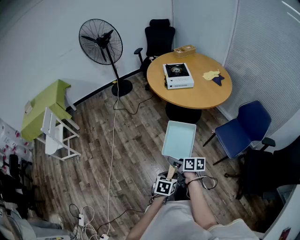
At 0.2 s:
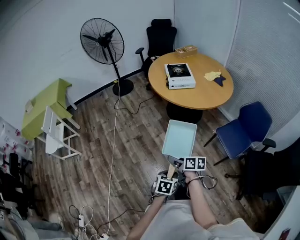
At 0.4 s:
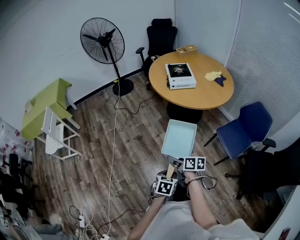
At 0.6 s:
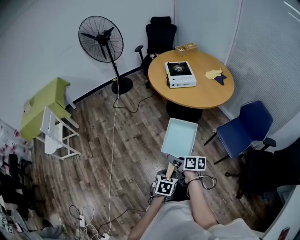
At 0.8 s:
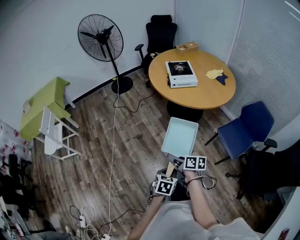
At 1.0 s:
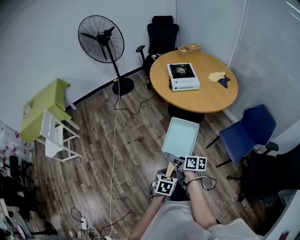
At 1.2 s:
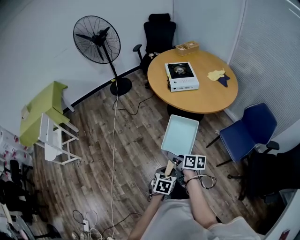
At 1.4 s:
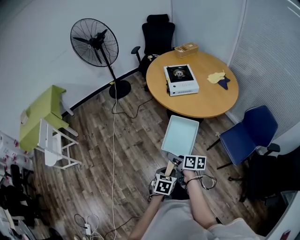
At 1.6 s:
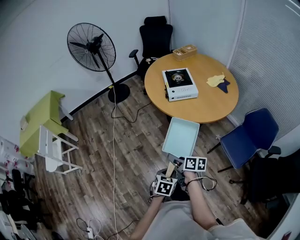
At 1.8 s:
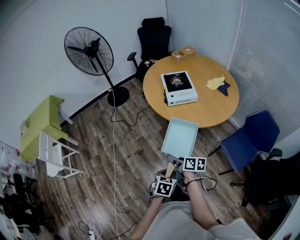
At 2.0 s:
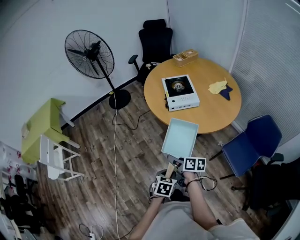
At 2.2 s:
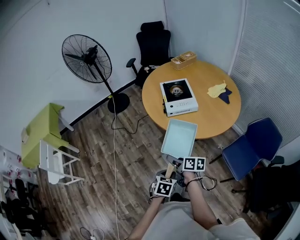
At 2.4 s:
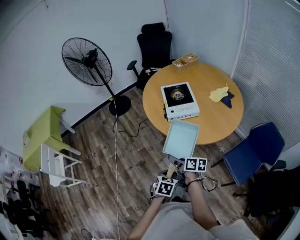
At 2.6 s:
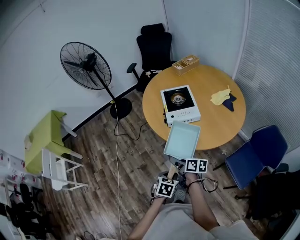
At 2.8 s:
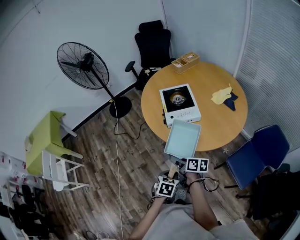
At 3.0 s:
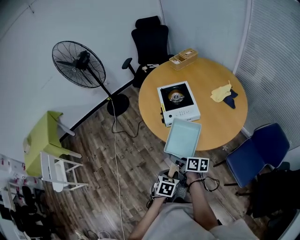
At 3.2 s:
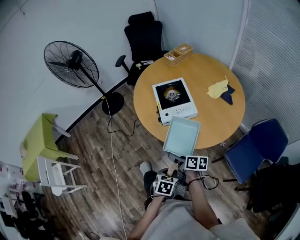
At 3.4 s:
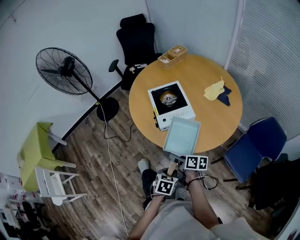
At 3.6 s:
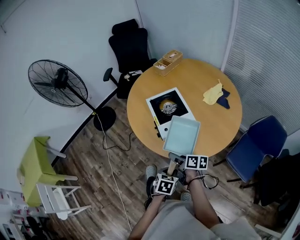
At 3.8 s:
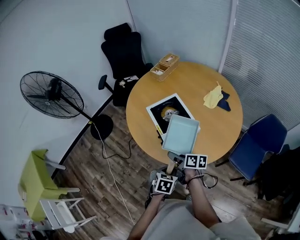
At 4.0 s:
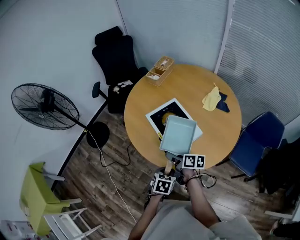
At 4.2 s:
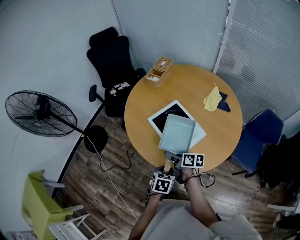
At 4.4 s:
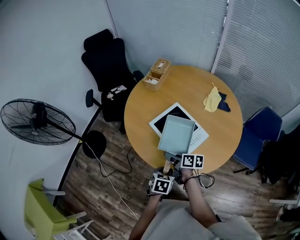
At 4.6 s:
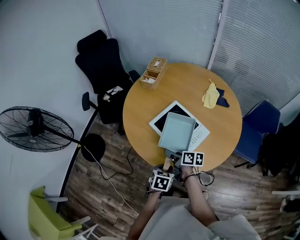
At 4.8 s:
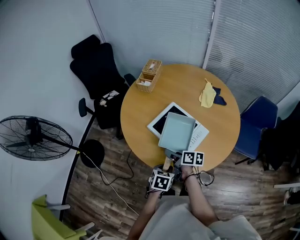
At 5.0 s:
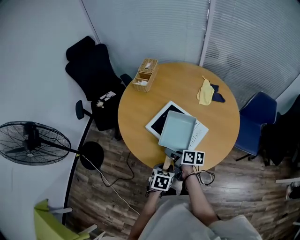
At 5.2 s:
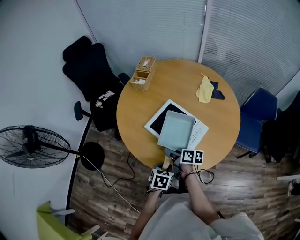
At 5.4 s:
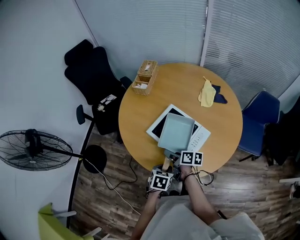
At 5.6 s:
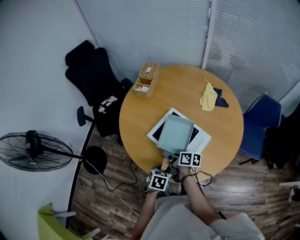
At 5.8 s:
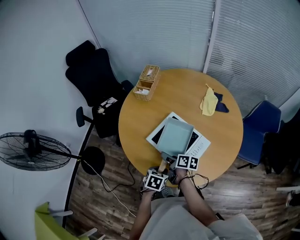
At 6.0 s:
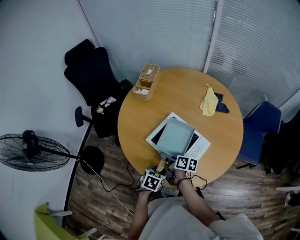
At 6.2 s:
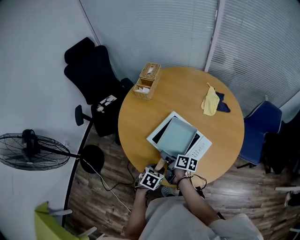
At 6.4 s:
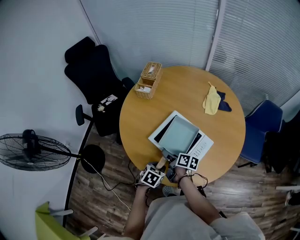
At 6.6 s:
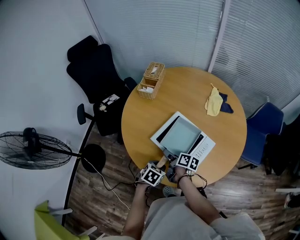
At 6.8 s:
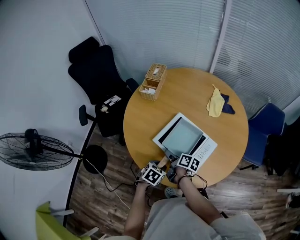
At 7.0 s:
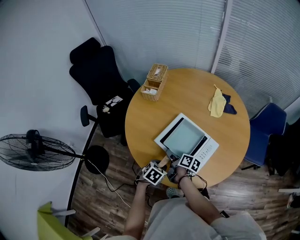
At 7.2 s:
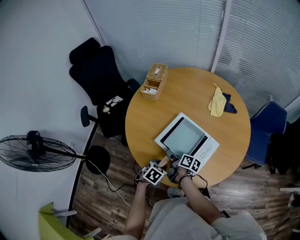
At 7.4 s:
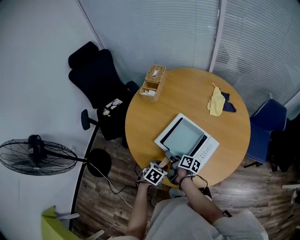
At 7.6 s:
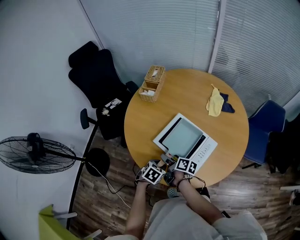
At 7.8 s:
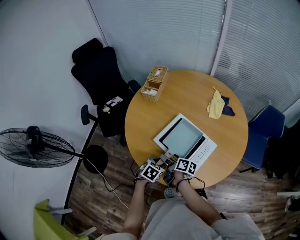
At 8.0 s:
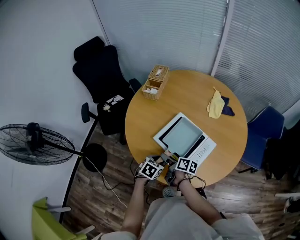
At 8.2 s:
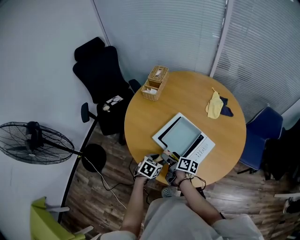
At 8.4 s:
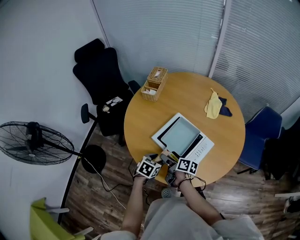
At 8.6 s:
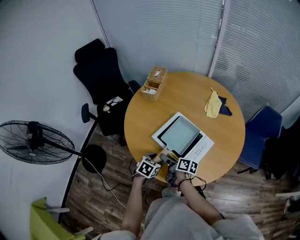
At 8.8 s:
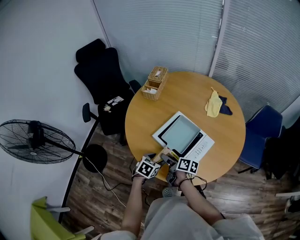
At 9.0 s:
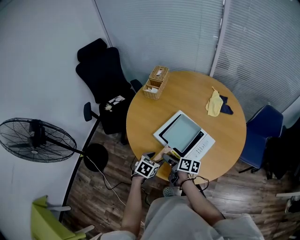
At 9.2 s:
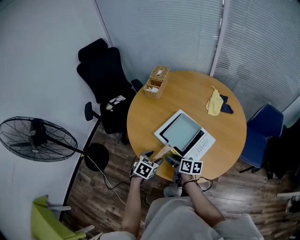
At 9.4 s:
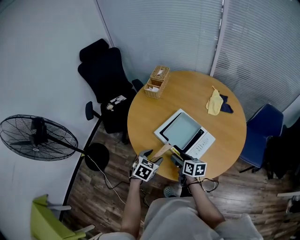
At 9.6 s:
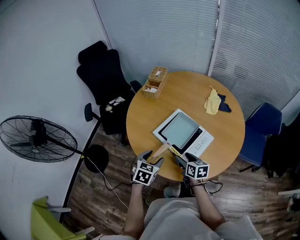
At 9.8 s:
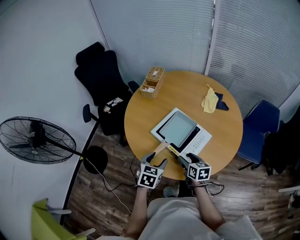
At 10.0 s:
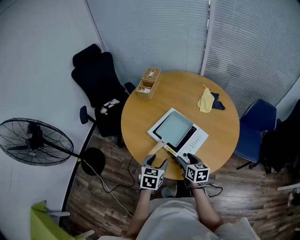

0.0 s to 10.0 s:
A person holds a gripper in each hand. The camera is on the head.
0.0 to 1.4 s: The grippers both shift forward by some 15 cm.
1.4 to 2.8 s: Both grippers travel together forward, about 25 cm.
2.8 to 4.2 s: The left gripper ends up about 30 cm from where it was, and turns by roughly 20 degrees. The right gripper moves approximately 30 cm, and rotates roughly 20 degrees.
4.2 to 5.8 s: The right gripper travels forward by about 10 cm. Meanwhile the left gripper is displaced forward and to the left by roughly 15 cm.
5.8 to 7.2 s: The left gripper changes place by roughly 5 cm.
7.2 to 8.6 s: The left gripper opens; the right gripper shifts roughly 5 cm backward.
8.6 to 10.0 s: The right gripper shifts approximately 15 cm to the right and backward, and changes its angle by approximately 40 degrees, while the left gripper travels upward and backward by some 10 cm, and turns by roughly 20 degrees.

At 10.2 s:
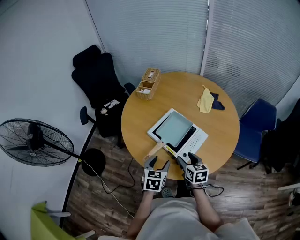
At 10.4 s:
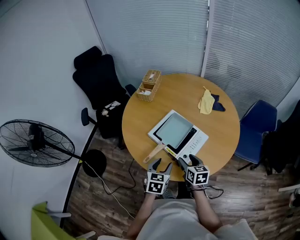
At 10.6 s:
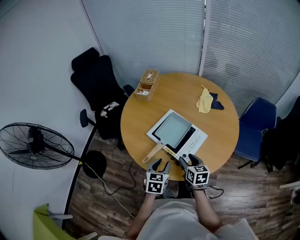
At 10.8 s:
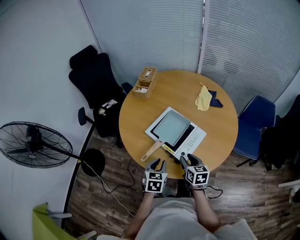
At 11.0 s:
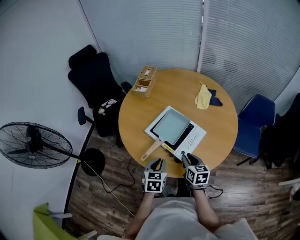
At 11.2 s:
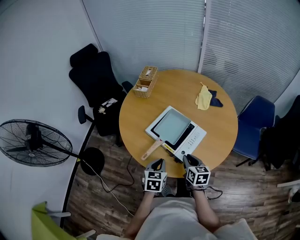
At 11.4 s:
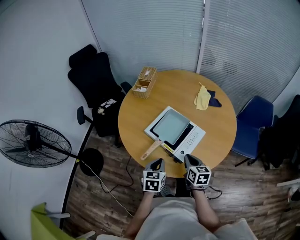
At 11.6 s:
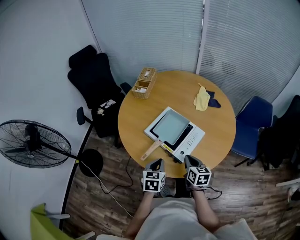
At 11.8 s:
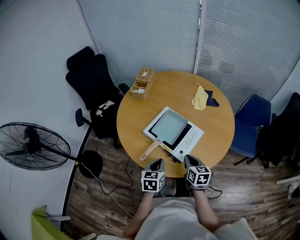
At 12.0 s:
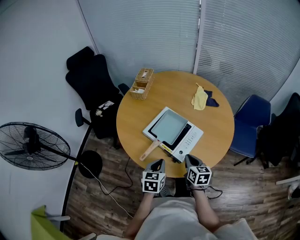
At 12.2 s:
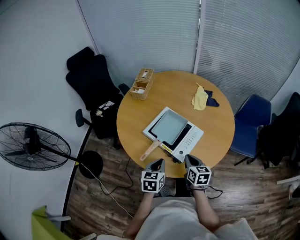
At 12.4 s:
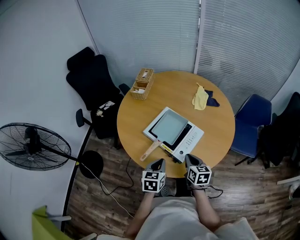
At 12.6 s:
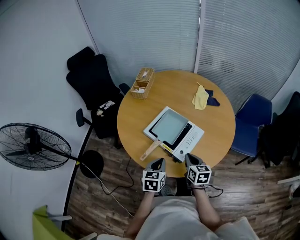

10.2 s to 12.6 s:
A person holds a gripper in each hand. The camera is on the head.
10.2 to 11.4 s: The right gripper closes up. Meanwhile the left gripper closes its fingers.
11.4 to 12.6 s: Both grippers stay about where they are.

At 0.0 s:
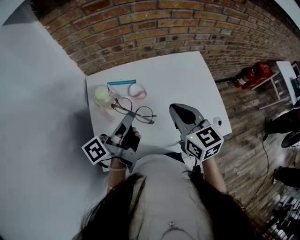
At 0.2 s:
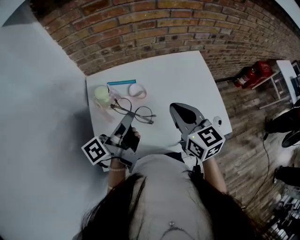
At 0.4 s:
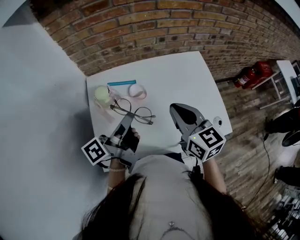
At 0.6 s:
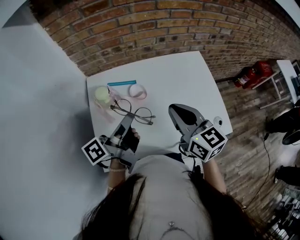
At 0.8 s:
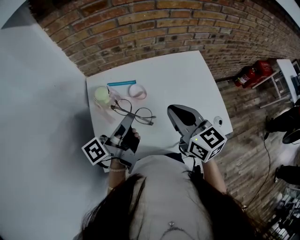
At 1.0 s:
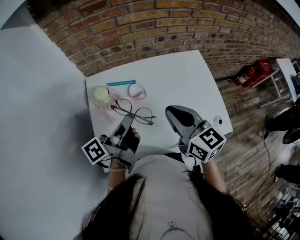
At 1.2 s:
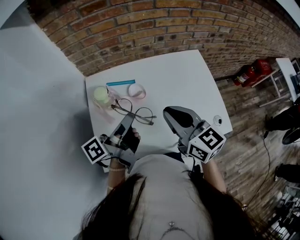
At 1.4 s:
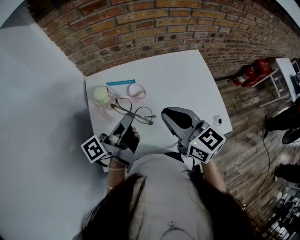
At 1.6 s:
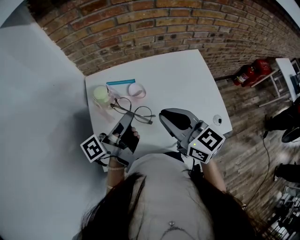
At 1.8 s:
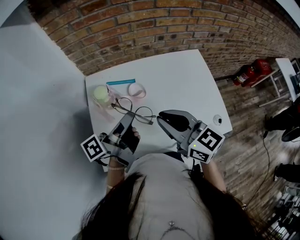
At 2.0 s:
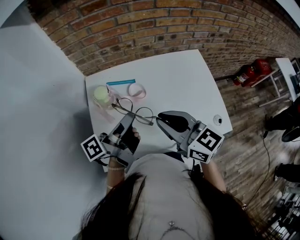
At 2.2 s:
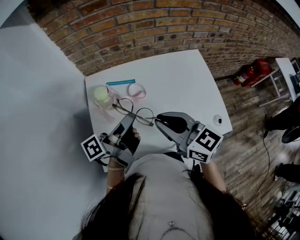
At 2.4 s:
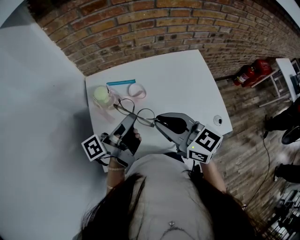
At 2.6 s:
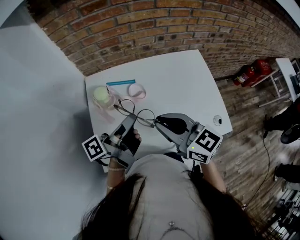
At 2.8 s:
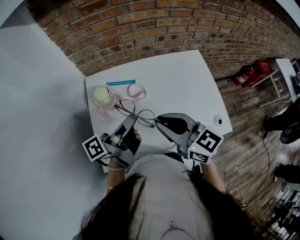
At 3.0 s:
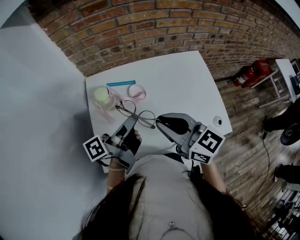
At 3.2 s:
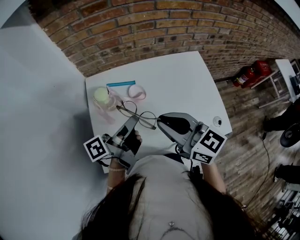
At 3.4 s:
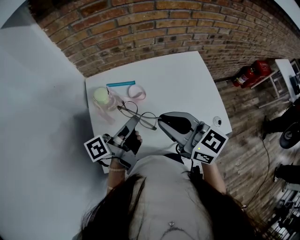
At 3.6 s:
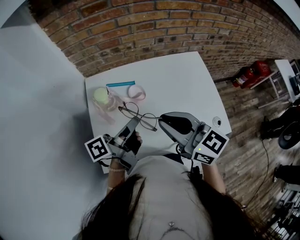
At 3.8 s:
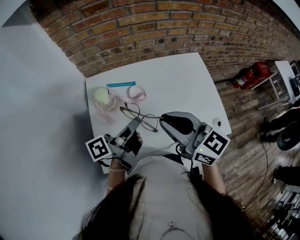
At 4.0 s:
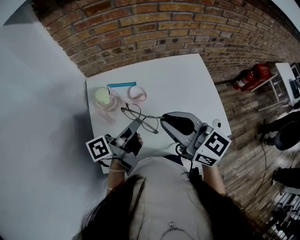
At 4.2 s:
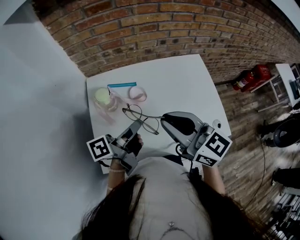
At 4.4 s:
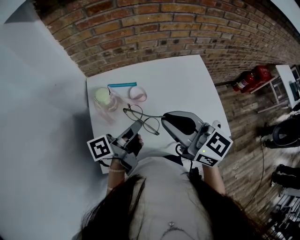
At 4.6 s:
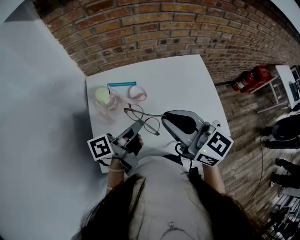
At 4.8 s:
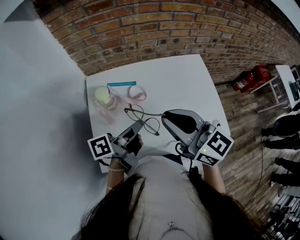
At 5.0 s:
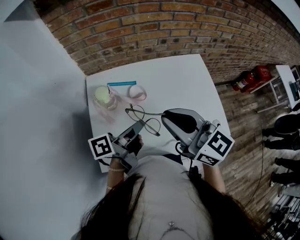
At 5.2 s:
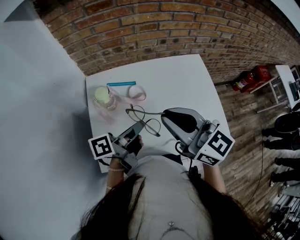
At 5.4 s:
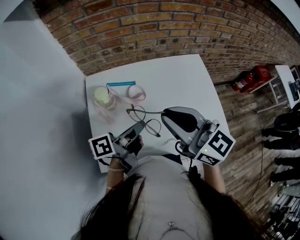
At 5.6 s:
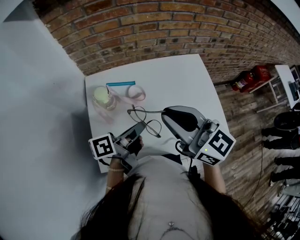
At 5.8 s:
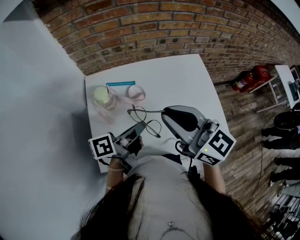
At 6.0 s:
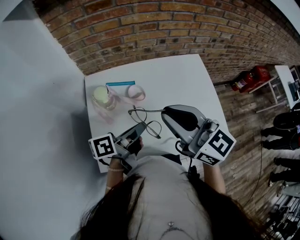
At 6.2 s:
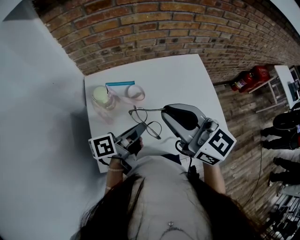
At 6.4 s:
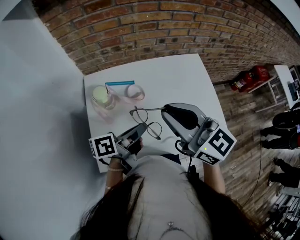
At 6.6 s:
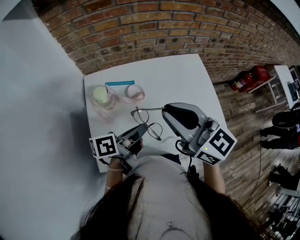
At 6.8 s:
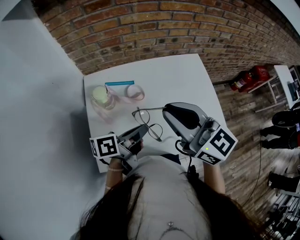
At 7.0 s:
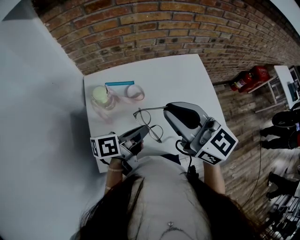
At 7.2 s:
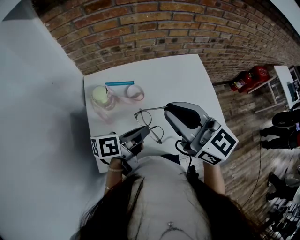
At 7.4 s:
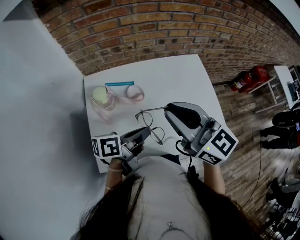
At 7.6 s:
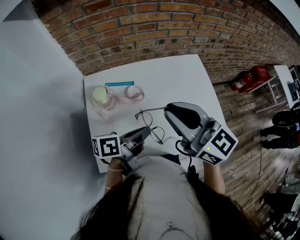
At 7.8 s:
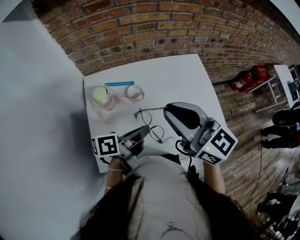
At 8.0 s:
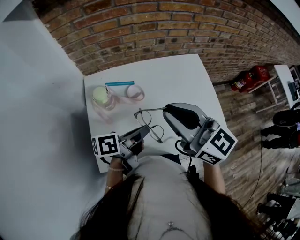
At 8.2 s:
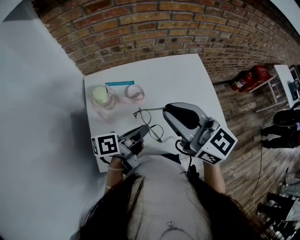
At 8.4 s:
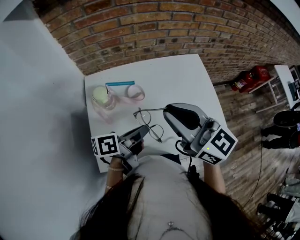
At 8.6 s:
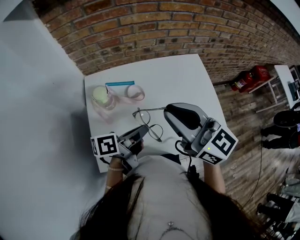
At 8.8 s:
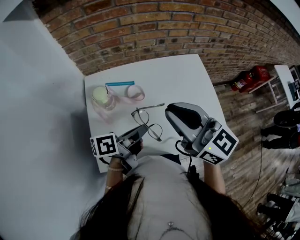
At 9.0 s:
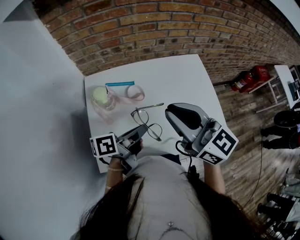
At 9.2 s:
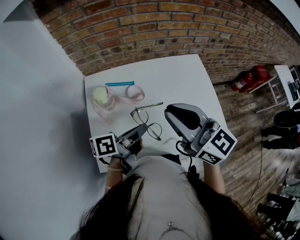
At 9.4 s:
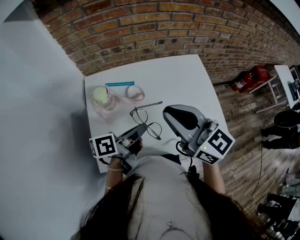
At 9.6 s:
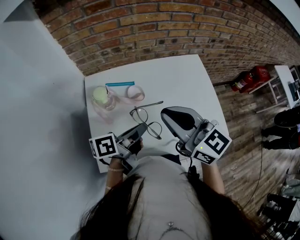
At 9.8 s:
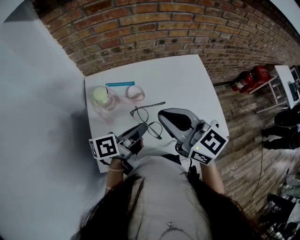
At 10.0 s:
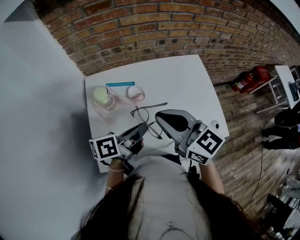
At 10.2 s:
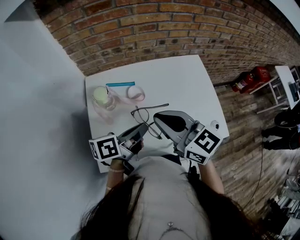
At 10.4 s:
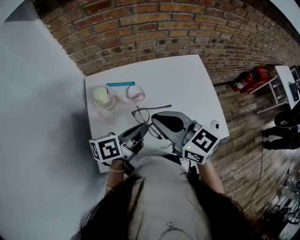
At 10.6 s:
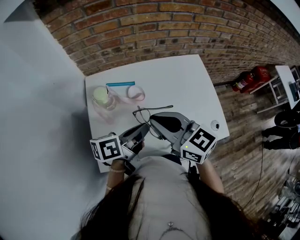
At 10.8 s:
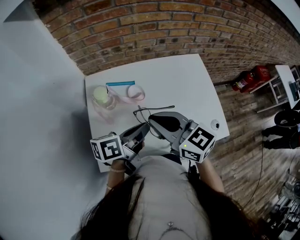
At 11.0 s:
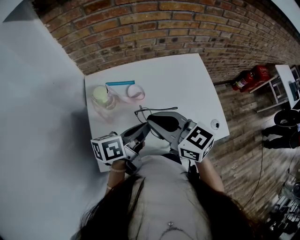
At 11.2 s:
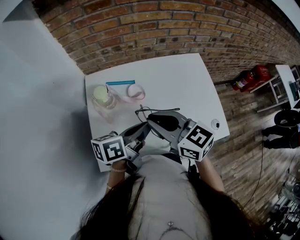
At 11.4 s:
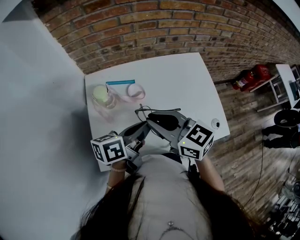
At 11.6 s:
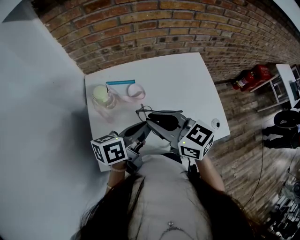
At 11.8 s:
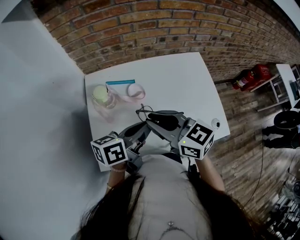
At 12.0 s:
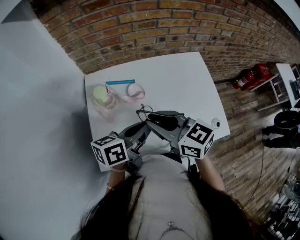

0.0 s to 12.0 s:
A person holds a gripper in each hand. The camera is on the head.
0.0 to 1.6 s: The right gripper ends up some 5 cm from where it was.
9.0 to 10.4 s: The right gripper moves downward, approximately 5 cm.
